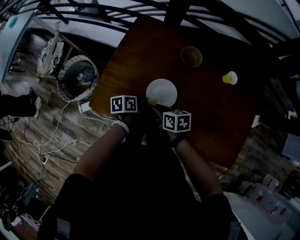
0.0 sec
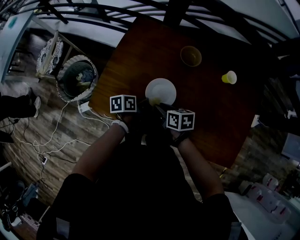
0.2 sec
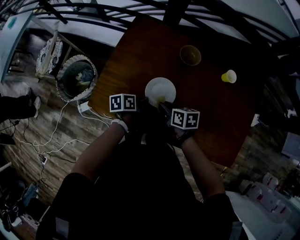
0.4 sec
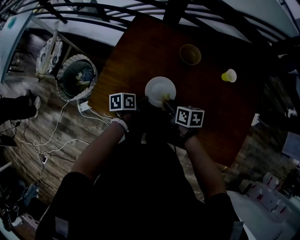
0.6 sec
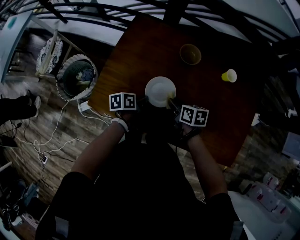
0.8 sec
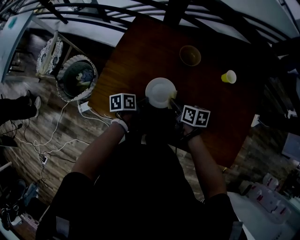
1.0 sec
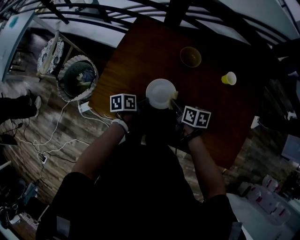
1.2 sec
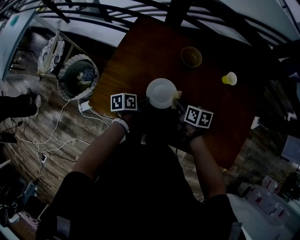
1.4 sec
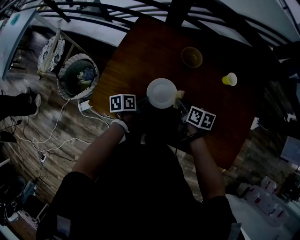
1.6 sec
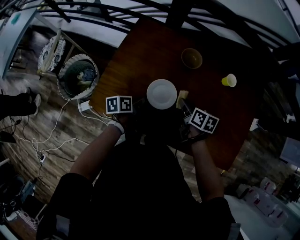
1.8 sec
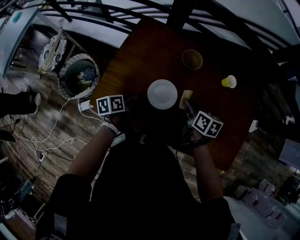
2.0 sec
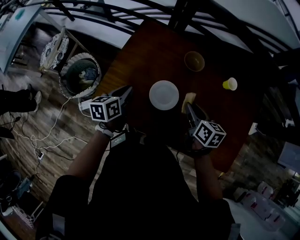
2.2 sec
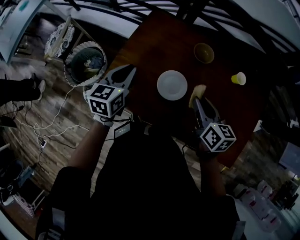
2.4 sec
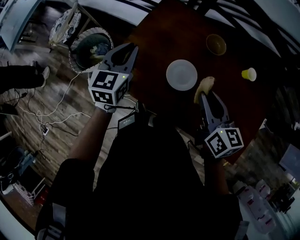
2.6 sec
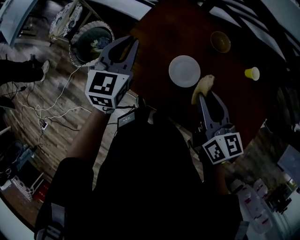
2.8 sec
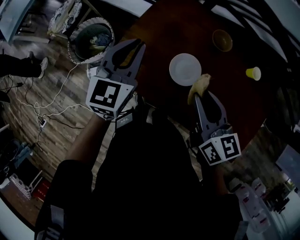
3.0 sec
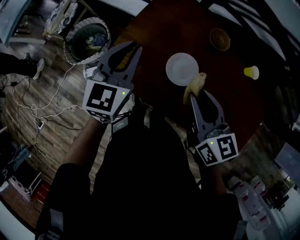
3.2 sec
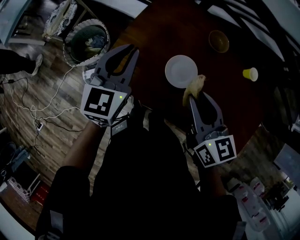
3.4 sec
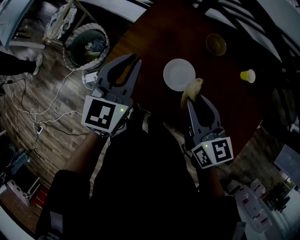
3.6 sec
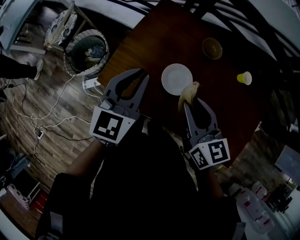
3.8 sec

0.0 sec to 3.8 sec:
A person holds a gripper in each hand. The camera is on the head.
0.0 sec to 1.2 sec: The right gripper goes approximately 10 cm to the right.
1.2 sec to 2.6 sec: The left gripper moves upward and to the left, about 25 cm, and turns by about 60 degrees. The right gripper moves upward, some 20 cm, and rotates roughly 30 degrees.
2.6 sec to 3.8 sec: The right gripper goes some 5 cm to the left, while the left gripper moves backward and upward, about 10 cm.

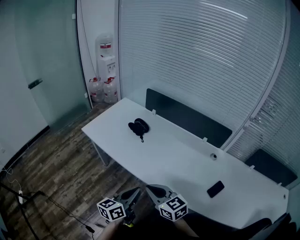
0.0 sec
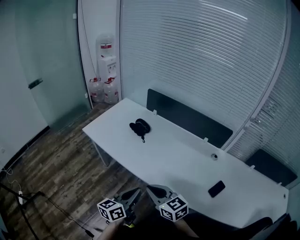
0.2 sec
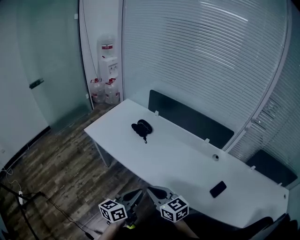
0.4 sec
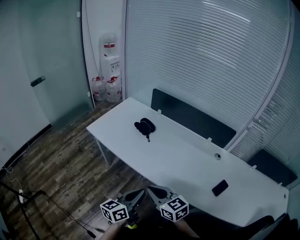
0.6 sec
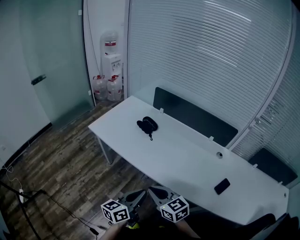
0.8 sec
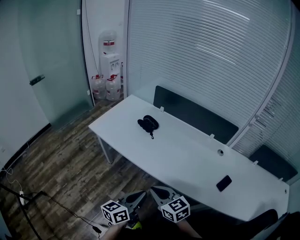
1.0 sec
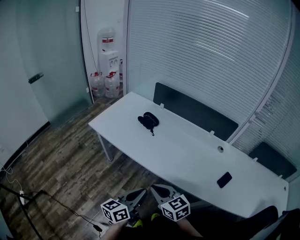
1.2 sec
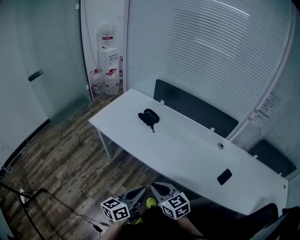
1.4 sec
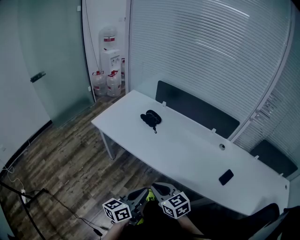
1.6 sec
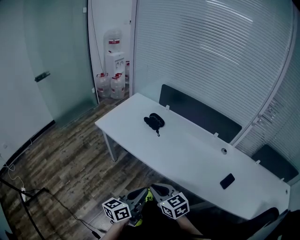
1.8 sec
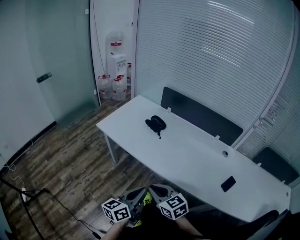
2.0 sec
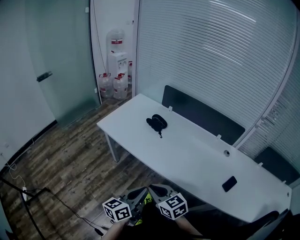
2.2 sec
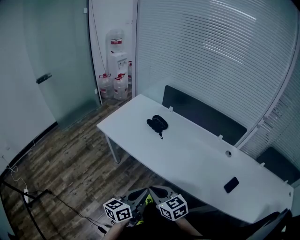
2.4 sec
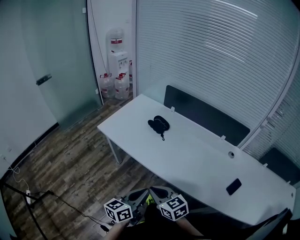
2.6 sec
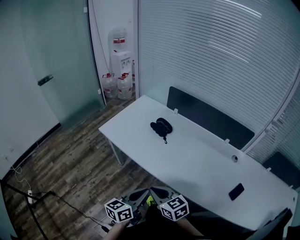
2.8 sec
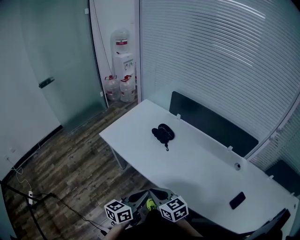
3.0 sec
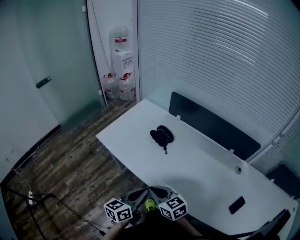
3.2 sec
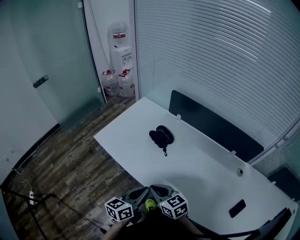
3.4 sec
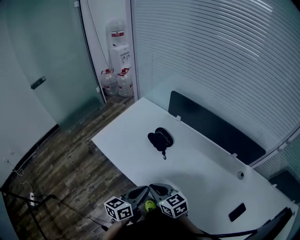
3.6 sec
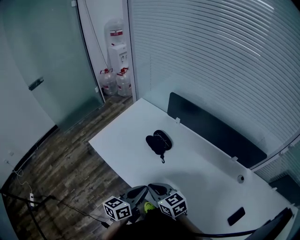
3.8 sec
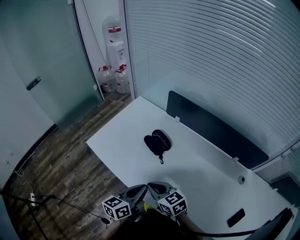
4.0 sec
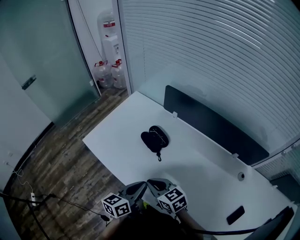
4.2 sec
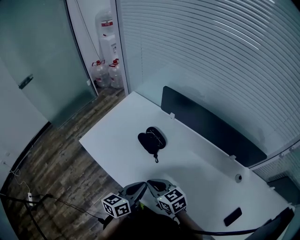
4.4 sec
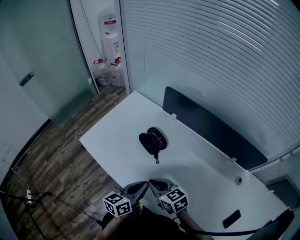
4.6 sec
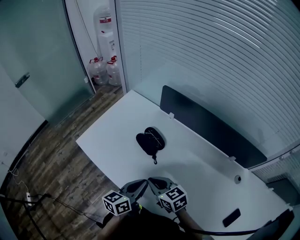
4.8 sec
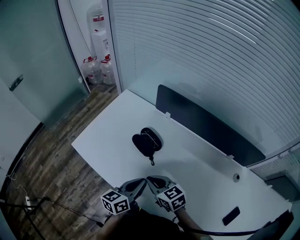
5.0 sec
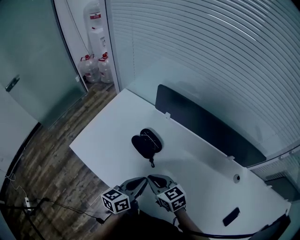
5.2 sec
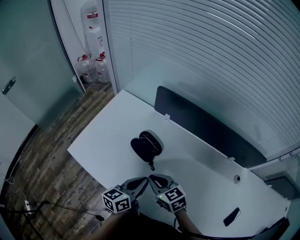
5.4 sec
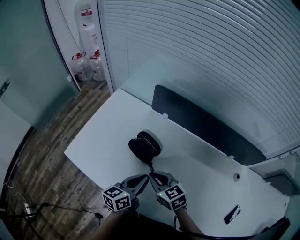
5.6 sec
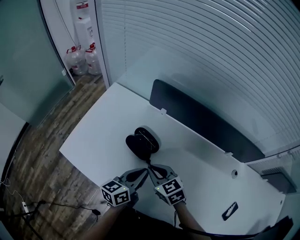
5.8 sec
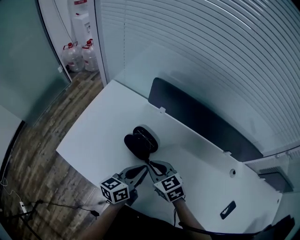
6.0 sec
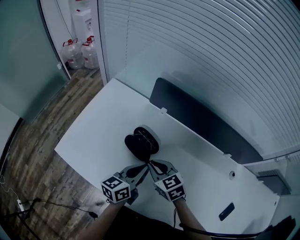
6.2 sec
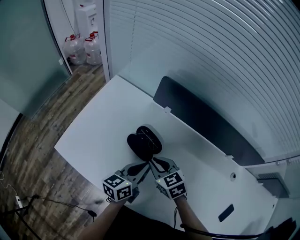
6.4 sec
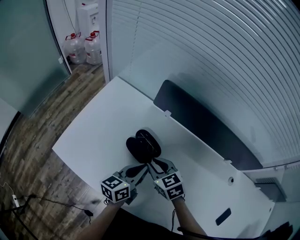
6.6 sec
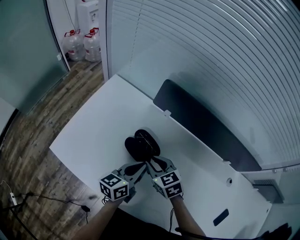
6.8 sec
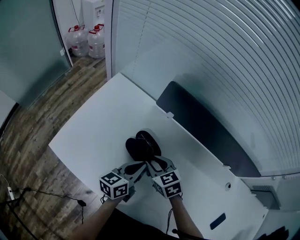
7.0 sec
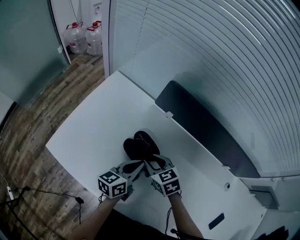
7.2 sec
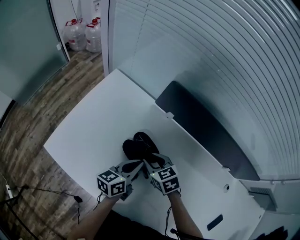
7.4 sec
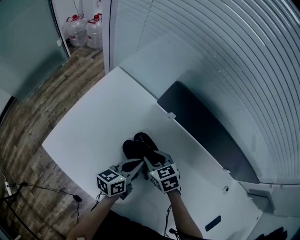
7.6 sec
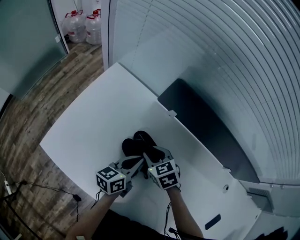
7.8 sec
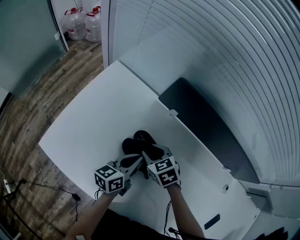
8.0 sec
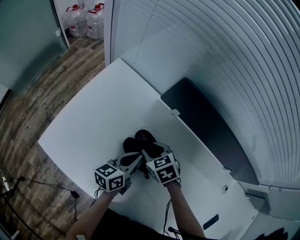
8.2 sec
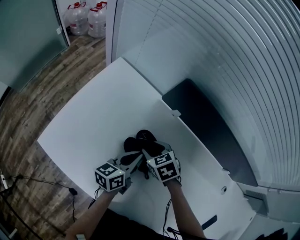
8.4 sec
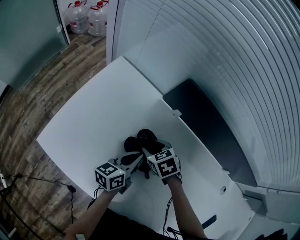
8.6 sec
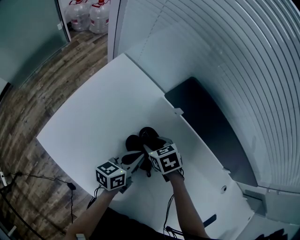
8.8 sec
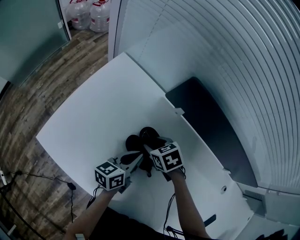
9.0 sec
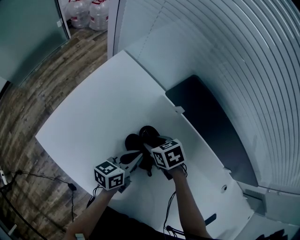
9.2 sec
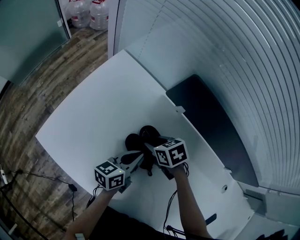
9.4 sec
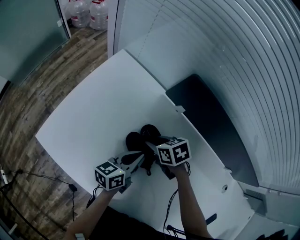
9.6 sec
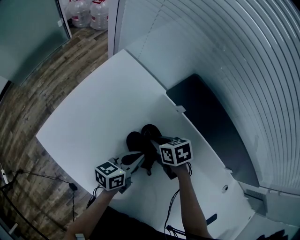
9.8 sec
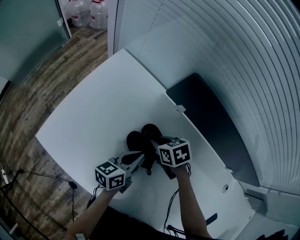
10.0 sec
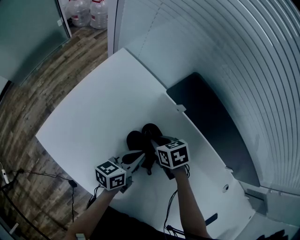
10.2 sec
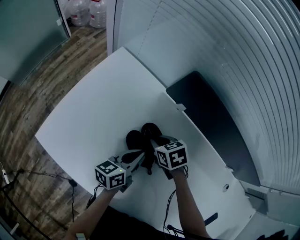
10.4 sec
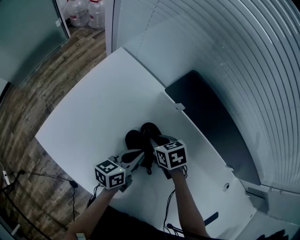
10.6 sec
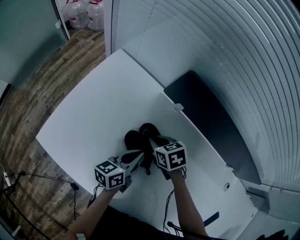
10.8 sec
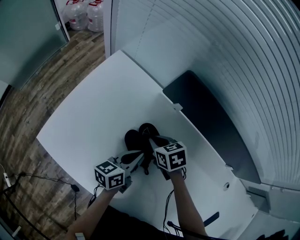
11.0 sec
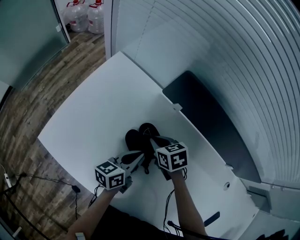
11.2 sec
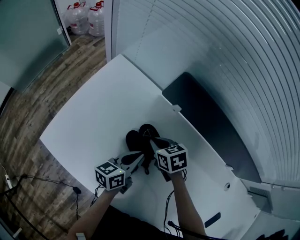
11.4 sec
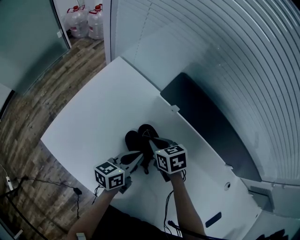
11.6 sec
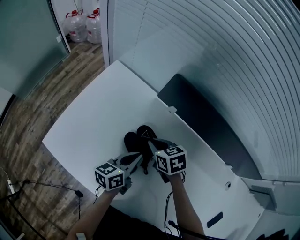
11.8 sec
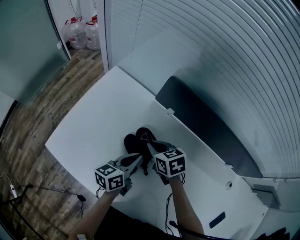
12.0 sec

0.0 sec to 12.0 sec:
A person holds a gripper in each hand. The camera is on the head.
0.0 sec to 1.6 sec: The right gripper goes some 10 cm to the left; the left gripper is displaced to the left and backward by some 10 cm.
1.6 sec to 3.0 sec: The grippers both shift forward by some 10 cm.
3.0 sec to 4.4 sec: The right gripper travels forward by roughly 15 cm. The left gripper is displaced forward and to the right by about 20 cm.
4.4 sec to 6.0 sec: The two grippers go some 15 cm forward.
6.0 sec to 7.6 sec: The grippers both shift forward and downward by some 10 cm. The right gripper opens its fingers.
7.6 sec to 9.0 sec: The right gripper changes place by some 5 cm.
9.0 sec to 10.4 sec: The right gripper closes its fingers.
10.4 sec to 12.0 sec: The right gripper is displaced upward by approximately 5 cm.

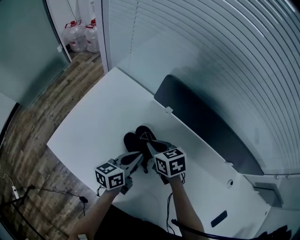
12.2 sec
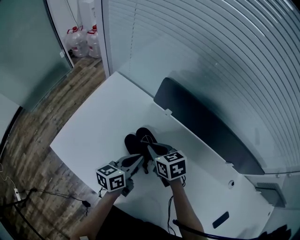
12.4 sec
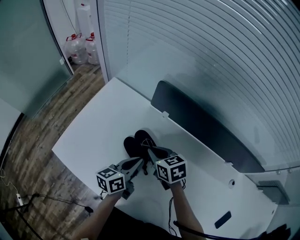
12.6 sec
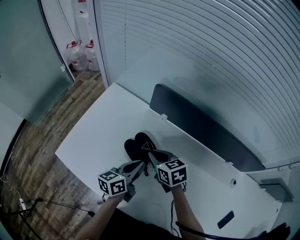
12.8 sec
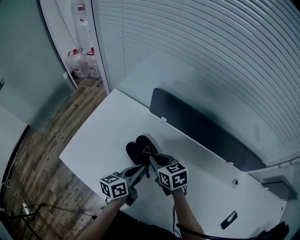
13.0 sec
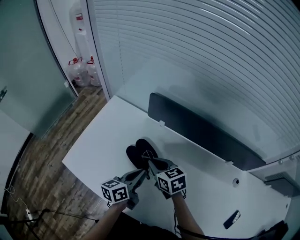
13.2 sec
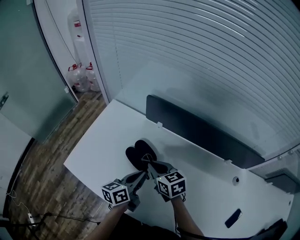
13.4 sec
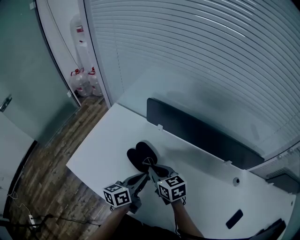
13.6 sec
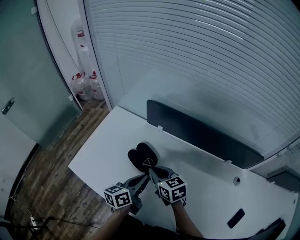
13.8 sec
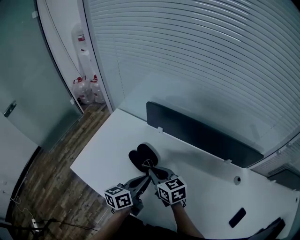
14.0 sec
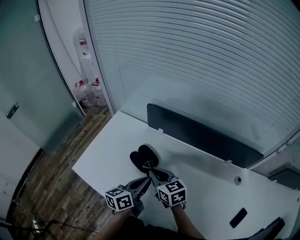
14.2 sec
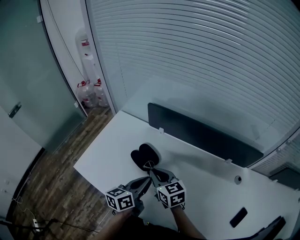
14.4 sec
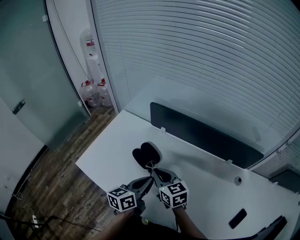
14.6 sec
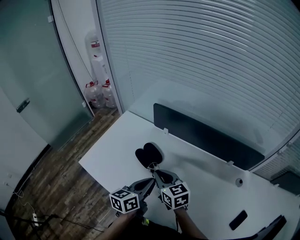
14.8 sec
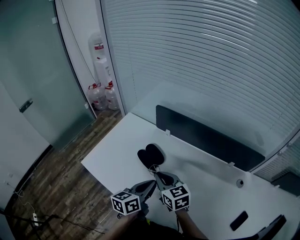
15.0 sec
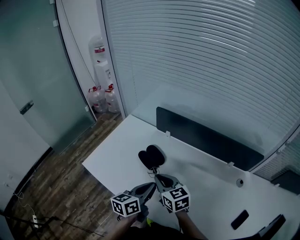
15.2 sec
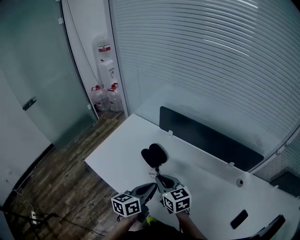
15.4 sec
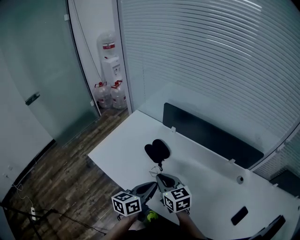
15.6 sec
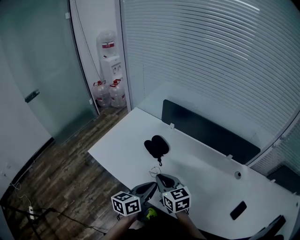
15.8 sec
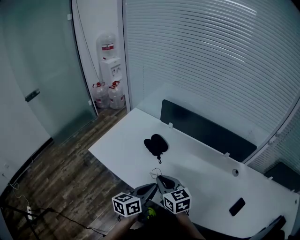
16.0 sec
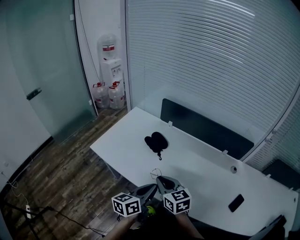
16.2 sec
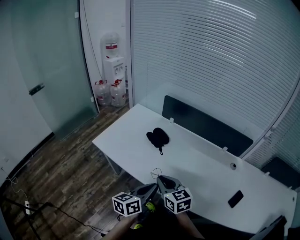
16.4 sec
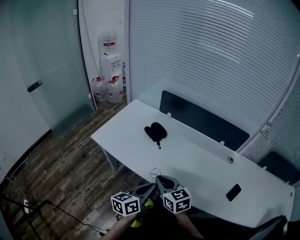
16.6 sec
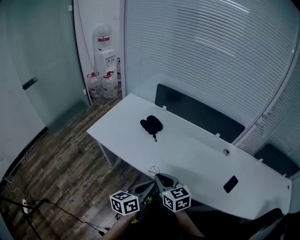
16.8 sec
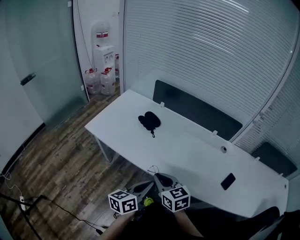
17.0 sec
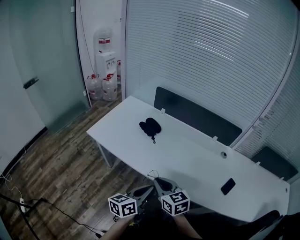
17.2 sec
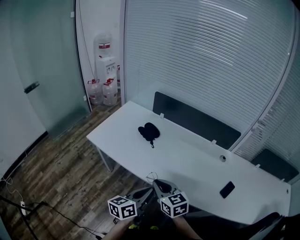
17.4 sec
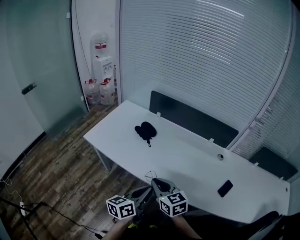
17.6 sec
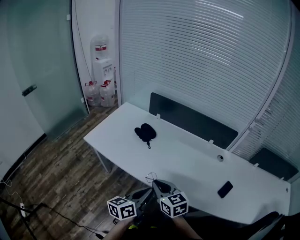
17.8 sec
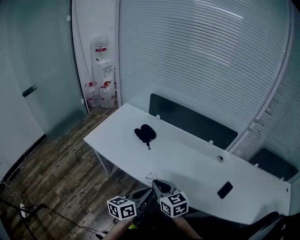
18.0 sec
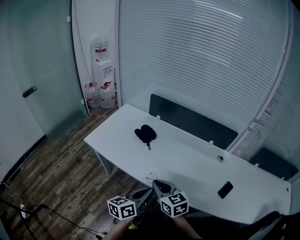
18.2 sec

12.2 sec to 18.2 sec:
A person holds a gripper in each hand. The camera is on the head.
12.2 sec to 13.8 sec: The grippers both shift backward and upward by some 10 cm. The right gripper rotates roughly 20 degrees.
13.8 sec to 15.2 sec: The two grippers go some 5 cm backward.
15.2 sec to 16.6 sec: Both grippers move backward, some 20 cm.
16.6 sec to 18.2 sec: The right gripper shifts by some 5 cm.

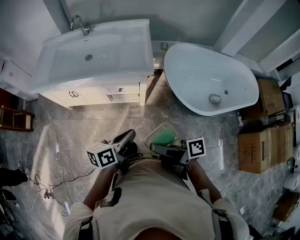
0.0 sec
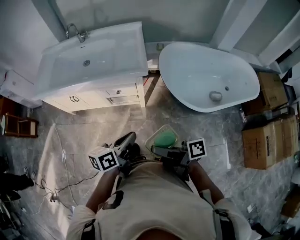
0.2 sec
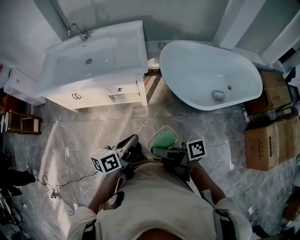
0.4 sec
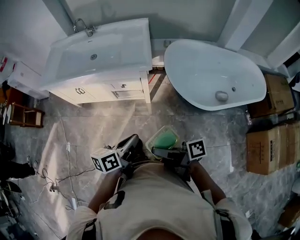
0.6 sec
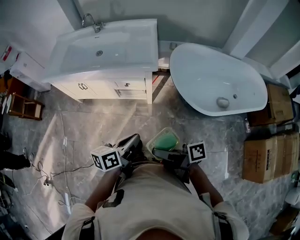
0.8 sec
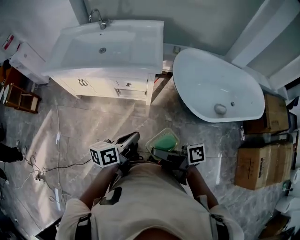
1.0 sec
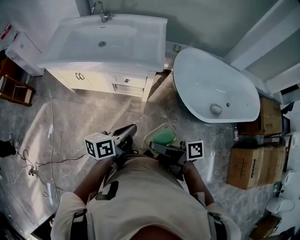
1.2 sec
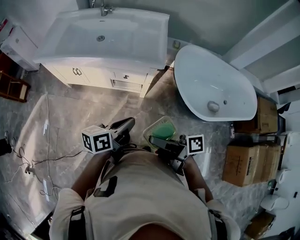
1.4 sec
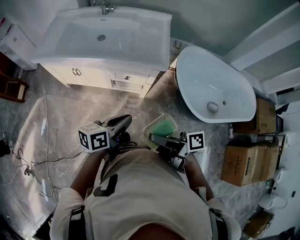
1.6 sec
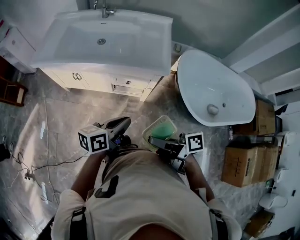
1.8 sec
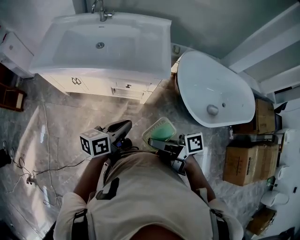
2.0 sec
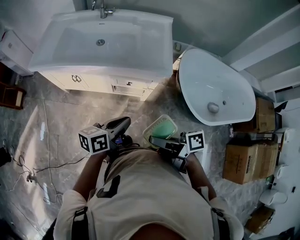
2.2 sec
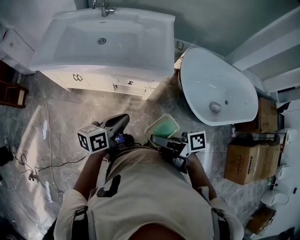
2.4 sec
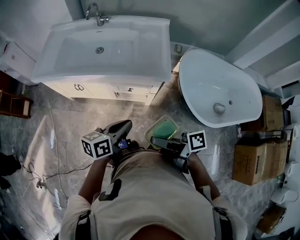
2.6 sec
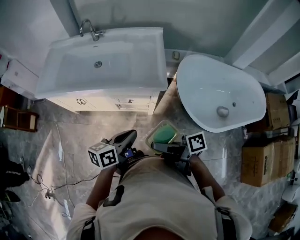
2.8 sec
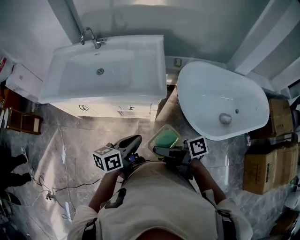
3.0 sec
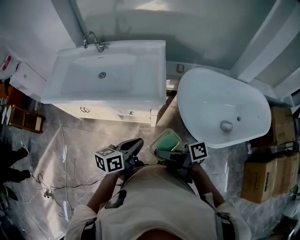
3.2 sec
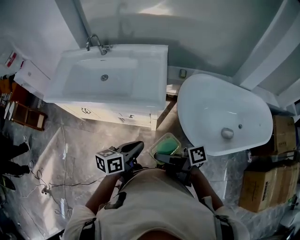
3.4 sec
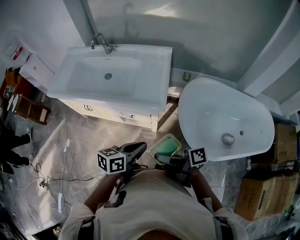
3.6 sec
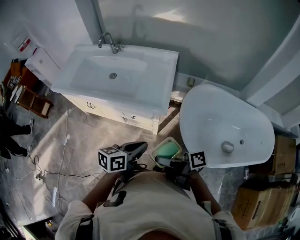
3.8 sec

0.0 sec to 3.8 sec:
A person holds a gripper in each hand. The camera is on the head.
1.2 sec to 2.6 sec: The left gripper ends up approximately 15 cm from where it was.
2.6 sec to 3.8 sec: The left gripper ends up roughly 15 cm from where it was.
